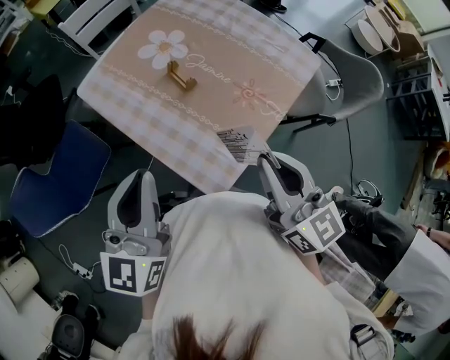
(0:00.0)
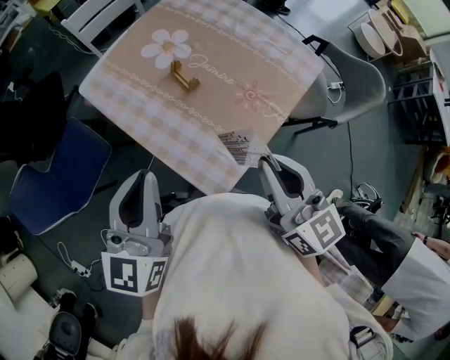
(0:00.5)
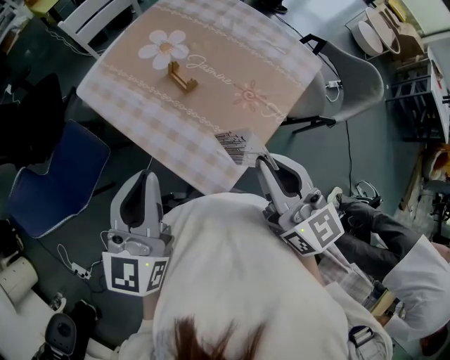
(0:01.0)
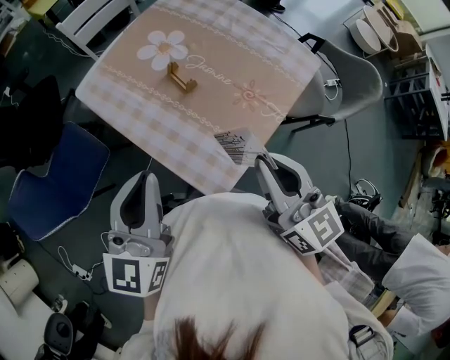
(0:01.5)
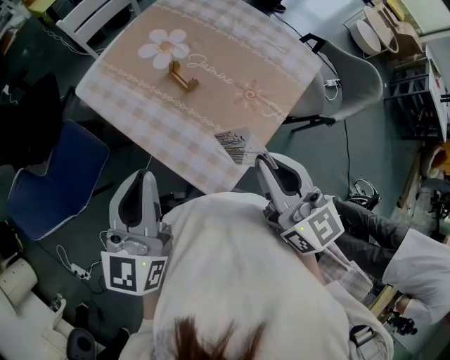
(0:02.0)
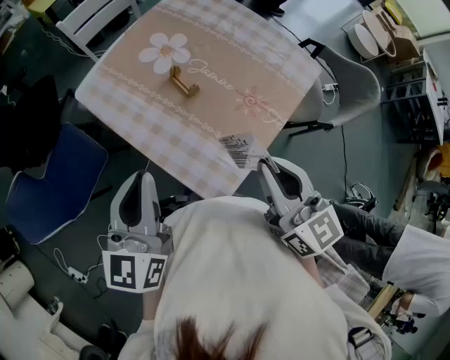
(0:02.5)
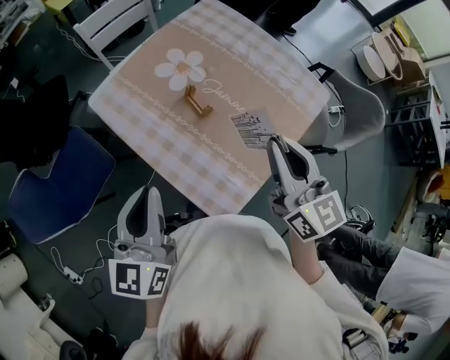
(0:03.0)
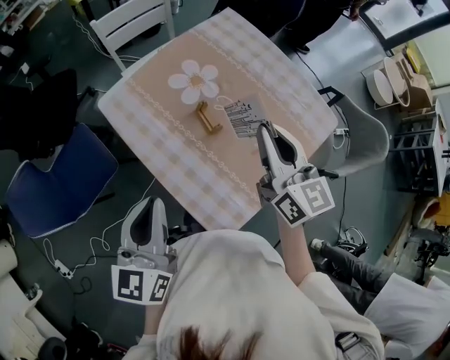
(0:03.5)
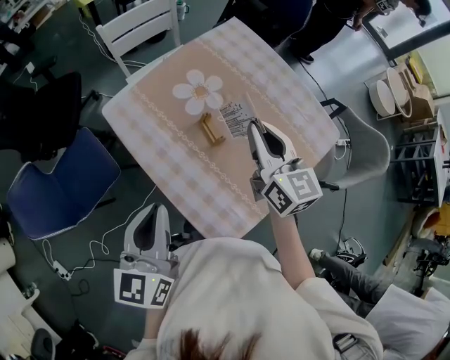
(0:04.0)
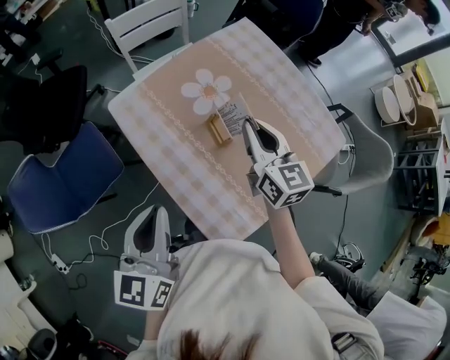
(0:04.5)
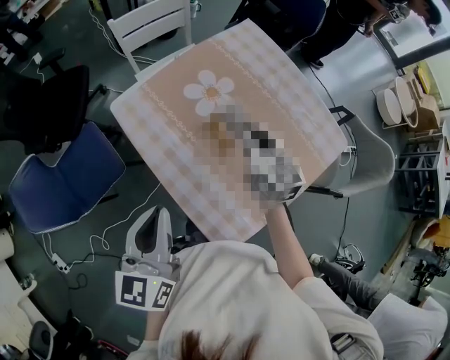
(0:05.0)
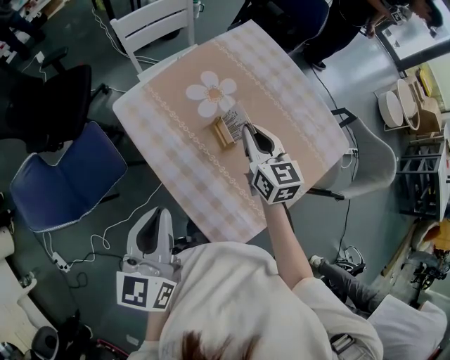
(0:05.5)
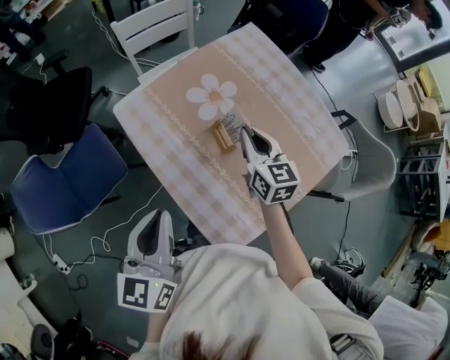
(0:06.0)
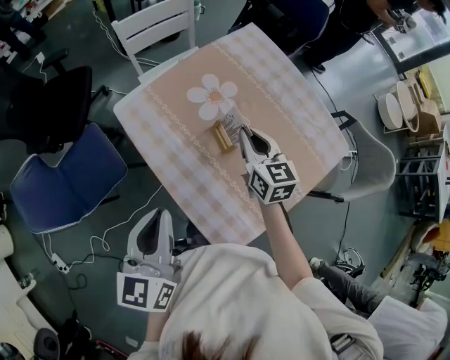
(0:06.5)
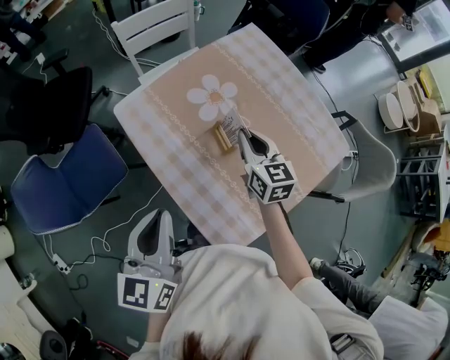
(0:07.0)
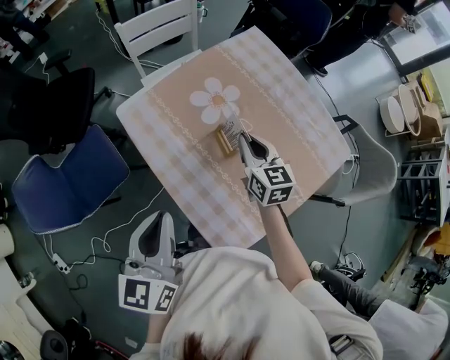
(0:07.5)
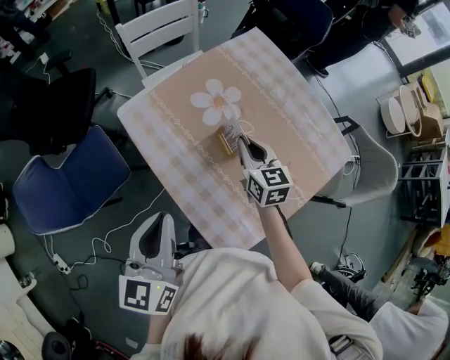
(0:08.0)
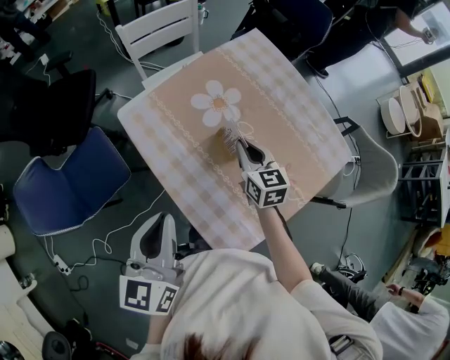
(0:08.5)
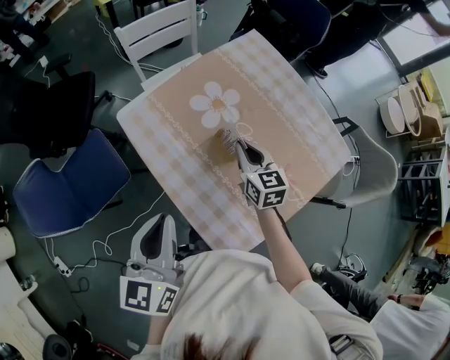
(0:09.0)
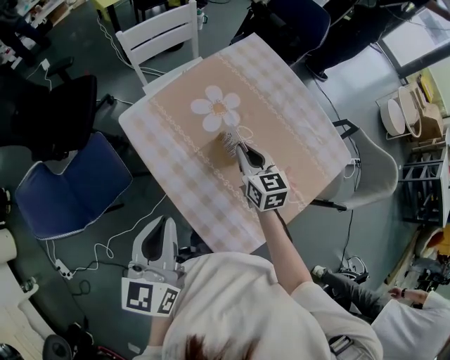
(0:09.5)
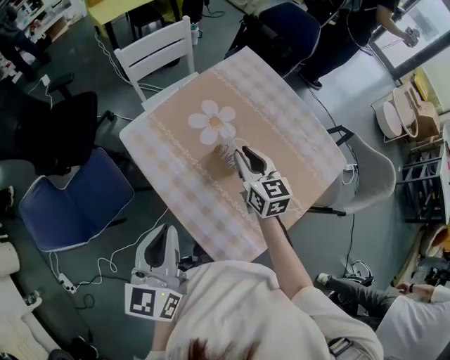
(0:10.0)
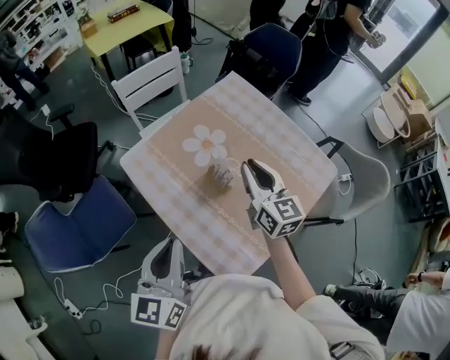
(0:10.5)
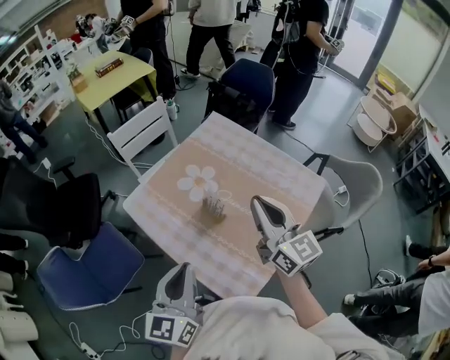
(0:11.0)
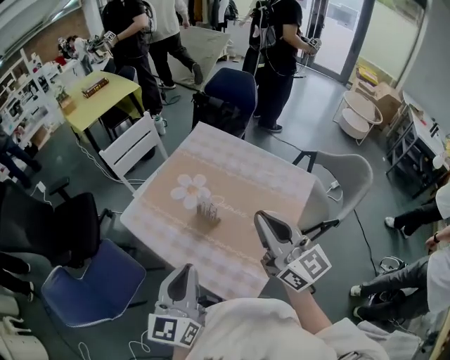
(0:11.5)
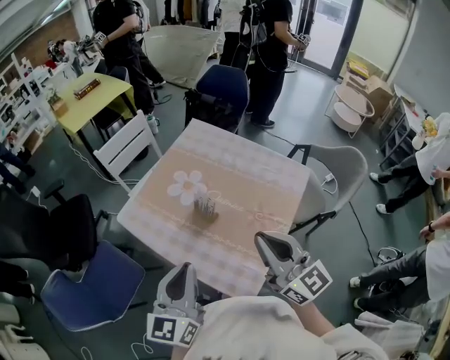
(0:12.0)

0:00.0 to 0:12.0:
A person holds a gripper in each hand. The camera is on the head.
0:00.0 to 0:02.0: The grippers stay close to where they were, moving slightly.
0:02.0 to 0:04.0: The right gripper moves forward, roughly 25 cm. The left gripper is displaced forward by roughly 5 cm.
0:04.0 to 0:06.0: The right gripper shifts approximately 10 cm downward.
0:06.0 to 0:10.0: There are only small adjustments of the grippers.
0:10.0 to 0:12.0: The left gripper moves to the right, about 5 cm, and changes its angle by about 20 degrees. Meanwhile the right gripper heads backward and upward, covering some 30 cm, rotates about 30 degrees, and closes.

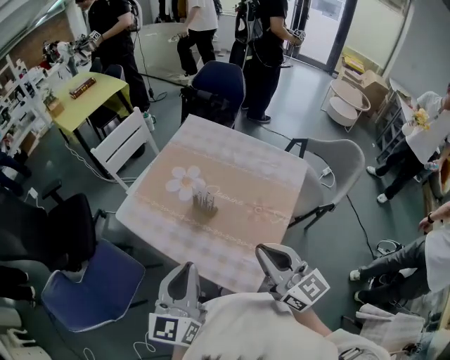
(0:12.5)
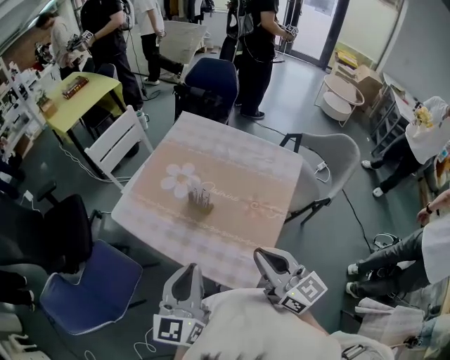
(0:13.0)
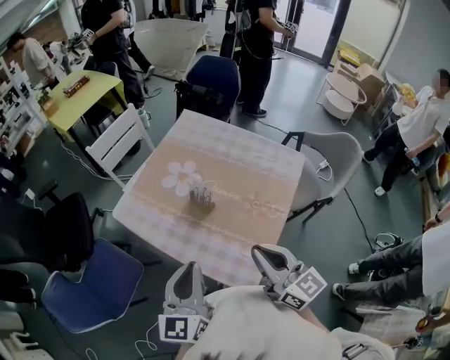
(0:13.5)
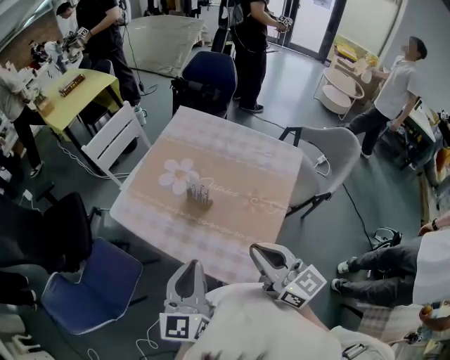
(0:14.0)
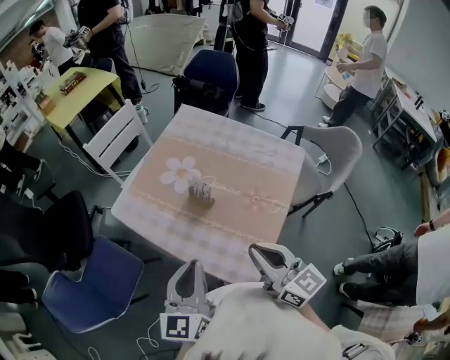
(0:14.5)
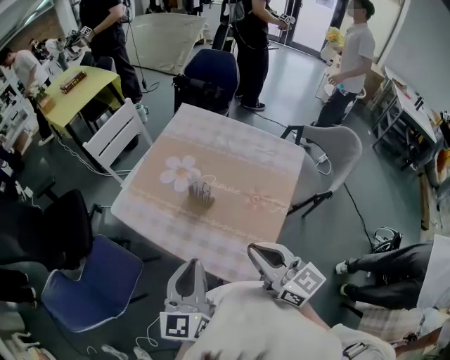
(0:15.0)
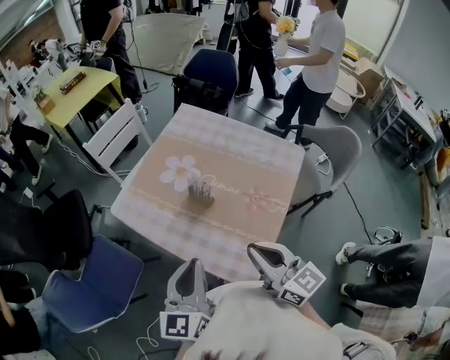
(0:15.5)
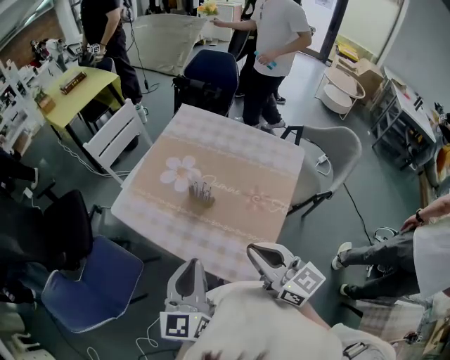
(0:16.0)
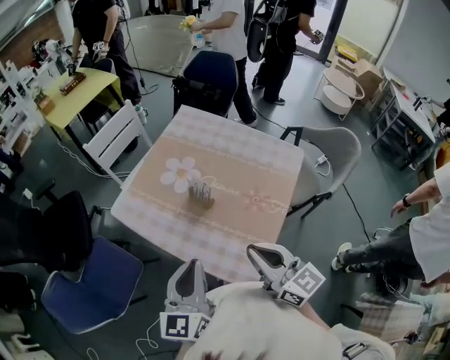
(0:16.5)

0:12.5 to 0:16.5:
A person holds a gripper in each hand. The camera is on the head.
0:12.5 to 0:14.5: The grippers move only a little.
0:14.5 to 0:16.5: Neither gripper changes place.

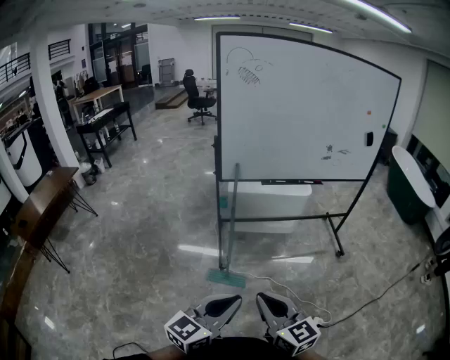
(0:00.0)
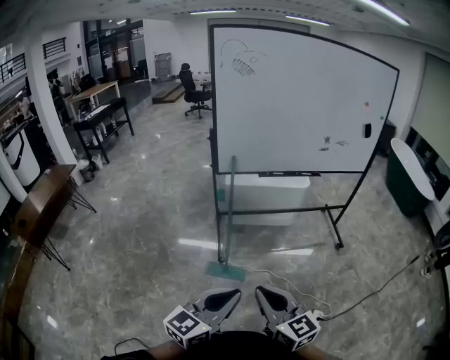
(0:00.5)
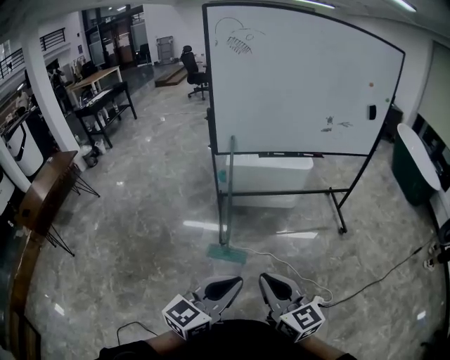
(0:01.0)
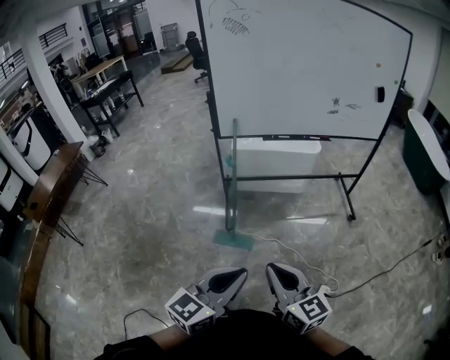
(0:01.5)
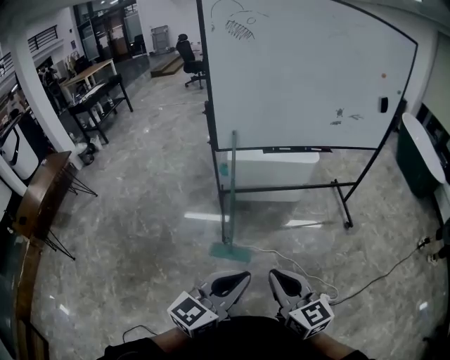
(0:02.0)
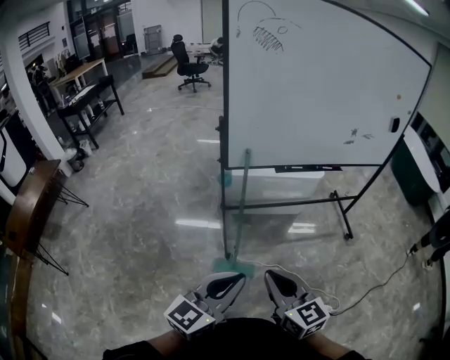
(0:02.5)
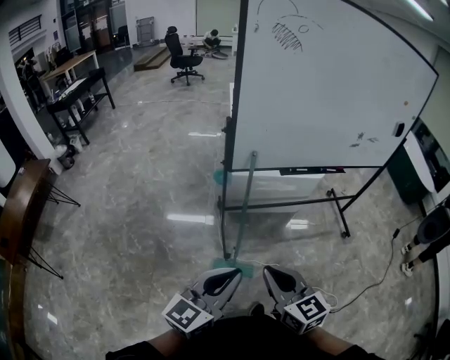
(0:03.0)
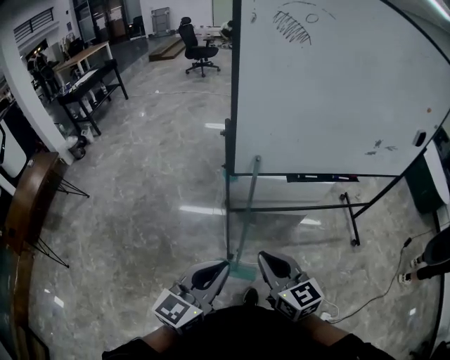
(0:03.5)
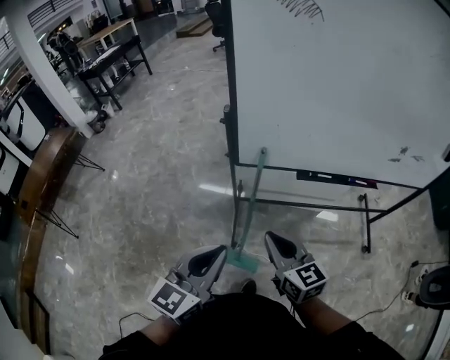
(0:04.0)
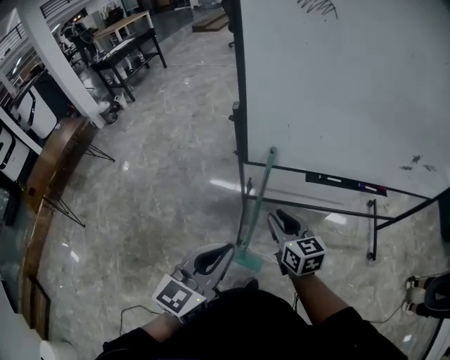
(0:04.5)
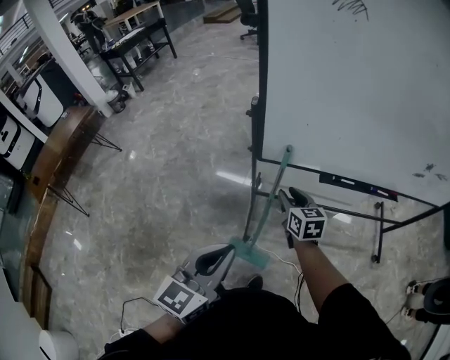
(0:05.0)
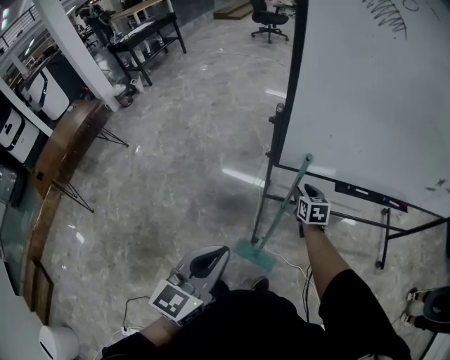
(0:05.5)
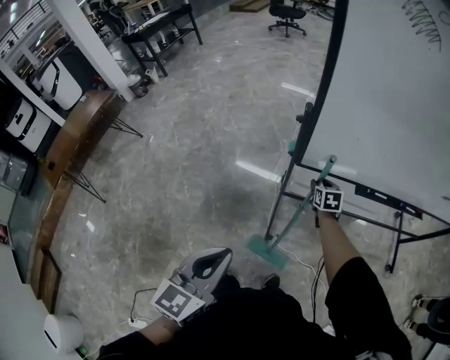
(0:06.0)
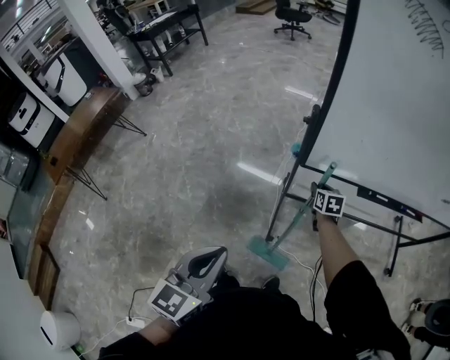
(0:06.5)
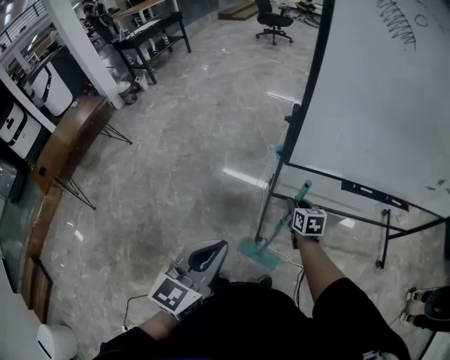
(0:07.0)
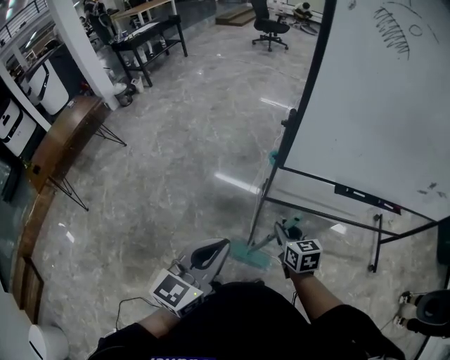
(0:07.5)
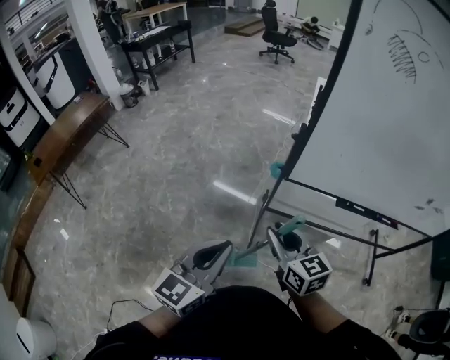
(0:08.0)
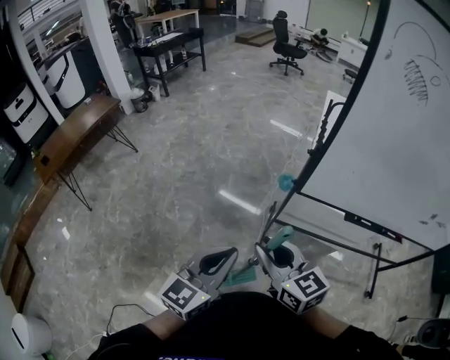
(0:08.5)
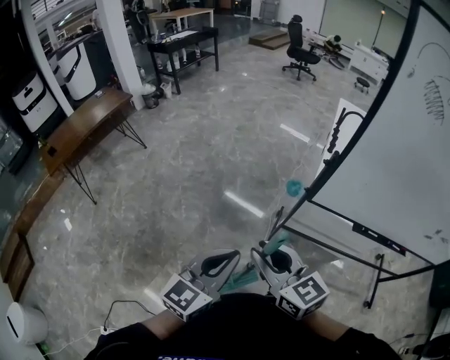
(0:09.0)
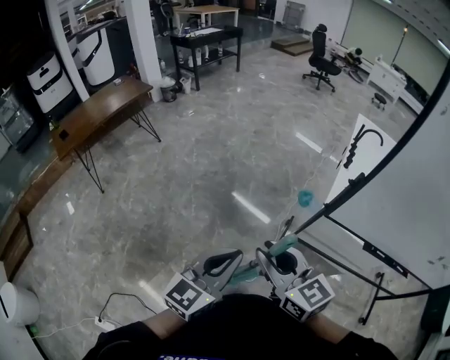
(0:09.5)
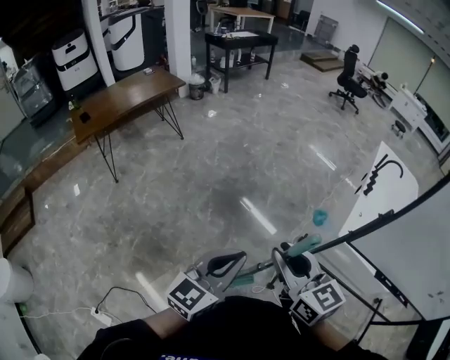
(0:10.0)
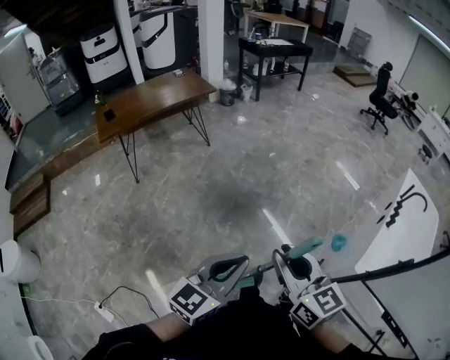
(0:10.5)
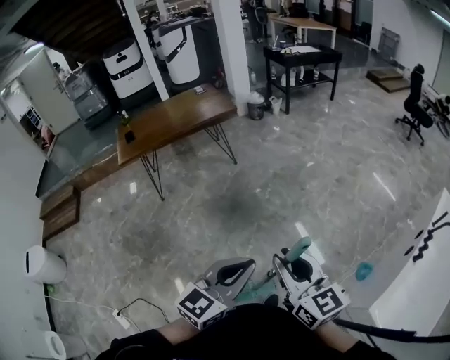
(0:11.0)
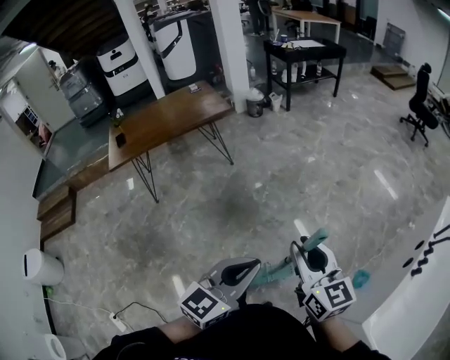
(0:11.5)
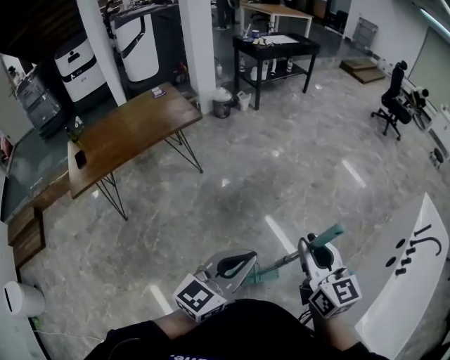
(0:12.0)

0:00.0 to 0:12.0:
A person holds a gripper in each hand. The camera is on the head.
0:00.0 to 0:02.0: Both grippers move forward, approximately 10 cm.
0:02.0 to 0:04.0: The right gripper goes about 40 cm forward; the left gripper goes roughly 35 cm forward and to the left, and changes its angle by about 20 degrees.
0:04.0 to 0:06.0: The left gripper shifts some 15 cm to the left. The right gripper goes about 35 cm forward and downward, tilts its fingers some 30 degrees downward, and opens up.
0:06.0 to 0:08.0: The right gripper moves backward, upward and to the left, some 35 cm, and swivels about 40 degrees.
0:08.0 to 0:10.0: Both grippers move to the left, roughly 25 cm. The right gripper swivels roughly 20 degrees.
0:10.0 to 0:12.0: The two grippers travel together, forward, about 50 cm.
